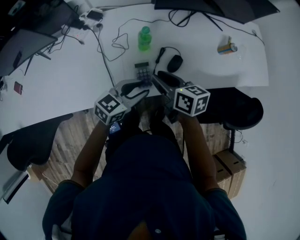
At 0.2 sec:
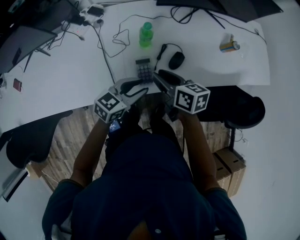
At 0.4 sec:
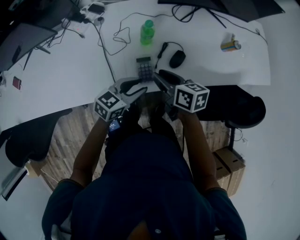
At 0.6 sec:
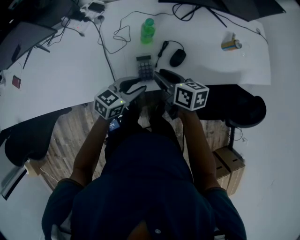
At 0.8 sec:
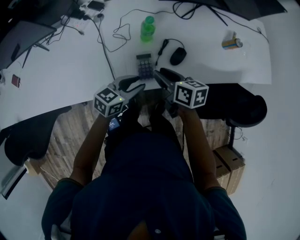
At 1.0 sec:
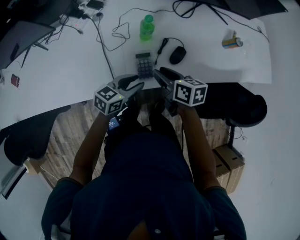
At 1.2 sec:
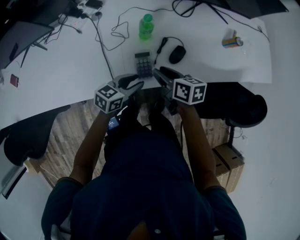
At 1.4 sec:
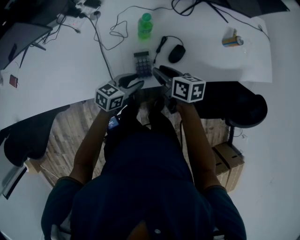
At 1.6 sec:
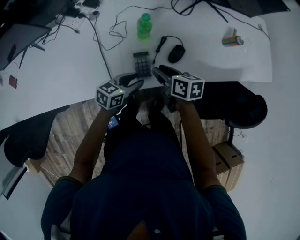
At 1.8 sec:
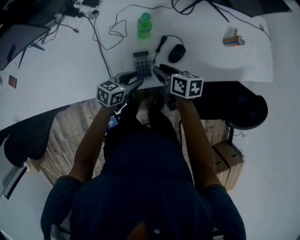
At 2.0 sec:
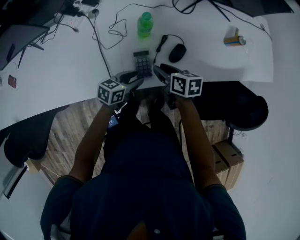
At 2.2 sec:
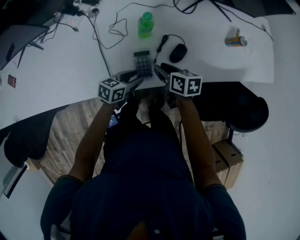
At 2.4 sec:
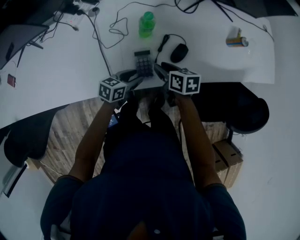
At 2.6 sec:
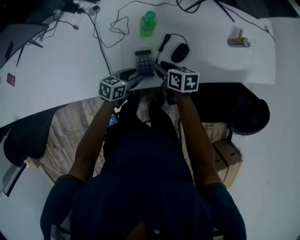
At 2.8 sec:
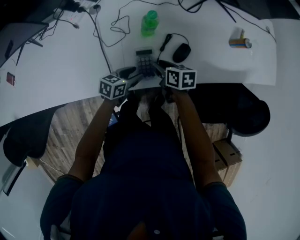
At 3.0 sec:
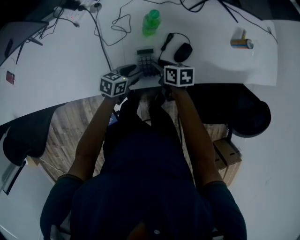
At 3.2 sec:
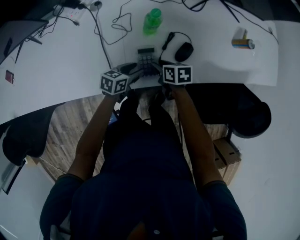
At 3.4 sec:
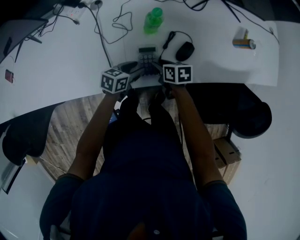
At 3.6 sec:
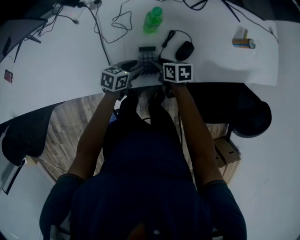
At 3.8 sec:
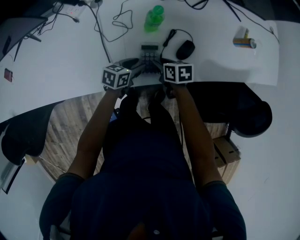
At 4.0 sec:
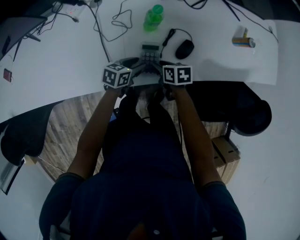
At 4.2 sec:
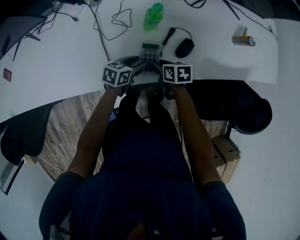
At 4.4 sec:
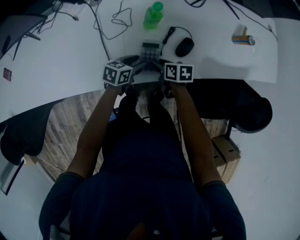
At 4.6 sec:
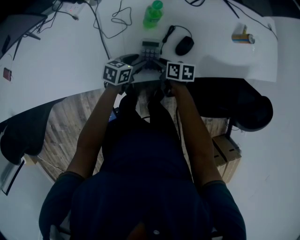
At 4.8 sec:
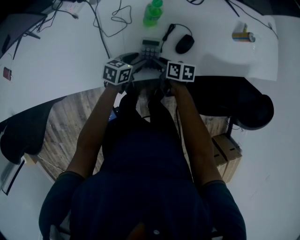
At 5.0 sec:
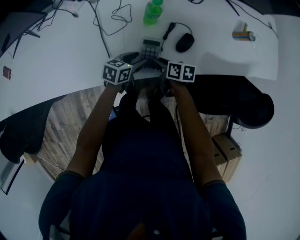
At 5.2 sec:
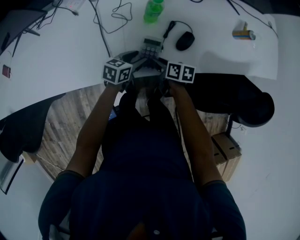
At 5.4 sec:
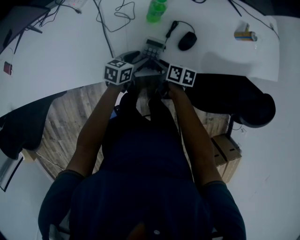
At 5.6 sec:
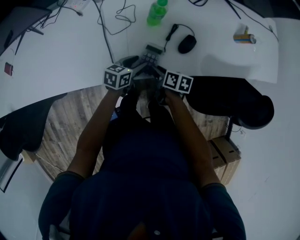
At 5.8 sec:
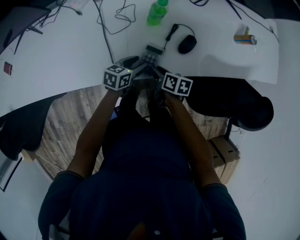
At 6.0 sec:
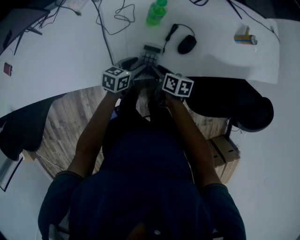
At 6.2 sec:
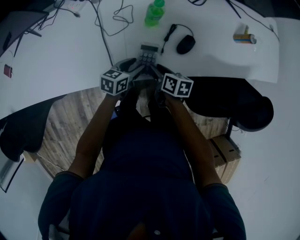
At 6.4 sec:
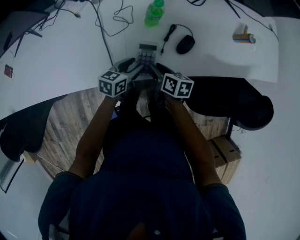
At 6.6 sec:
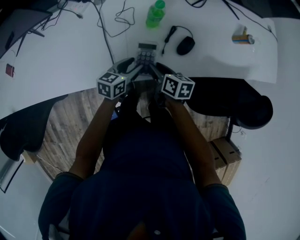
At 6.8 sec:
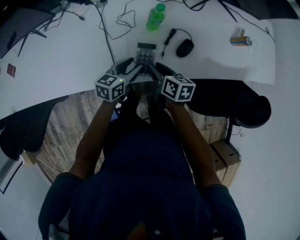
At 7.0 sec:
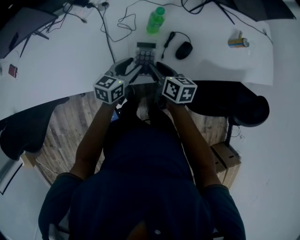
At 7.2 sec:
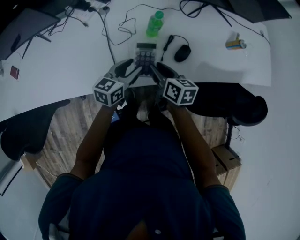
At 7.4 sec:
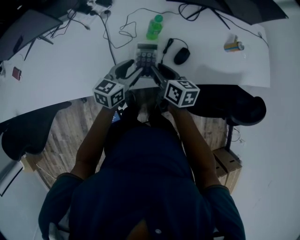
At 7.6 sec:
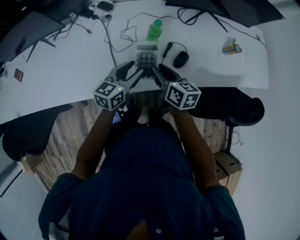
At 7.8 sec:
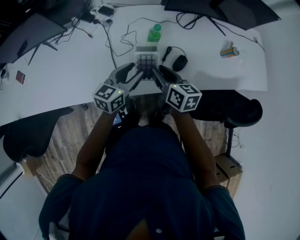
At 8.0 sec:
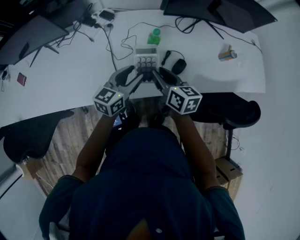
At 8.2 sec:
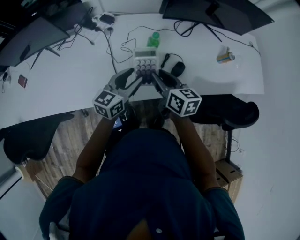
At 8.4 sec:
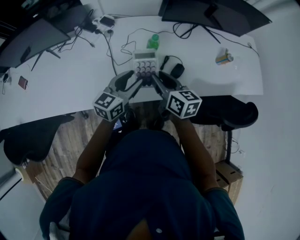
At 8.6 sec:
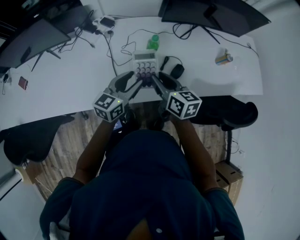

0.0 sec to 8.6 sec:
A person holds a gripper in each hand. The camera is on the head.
0.0 sec to 1.4 sec: Both grippers travel together downward, some 10 cm.
1.4 sec to 2.8 sec: Both grippers move downward, some 10 cm.
2.8 sec to 4.4 sec: The right gripper shifts approximately 5 cm downward.
4.4 sec to 5.8 sec: The right gripper goes roughly 5 cm backward.
5.8 sec to 7.2 sec: Both grippers move upward, roughly 15 cm. The right gripper changes its angle by some 20 degrees.
7.2 sec to 8.6 sec: The two grippers go about 10 cm upward.

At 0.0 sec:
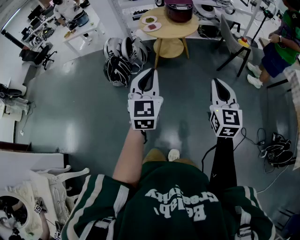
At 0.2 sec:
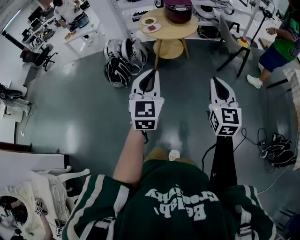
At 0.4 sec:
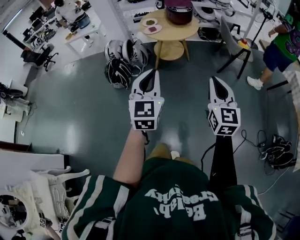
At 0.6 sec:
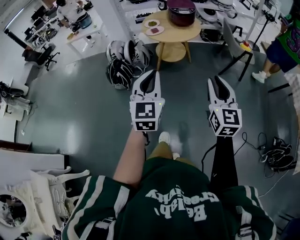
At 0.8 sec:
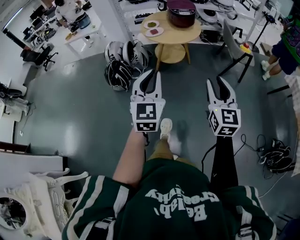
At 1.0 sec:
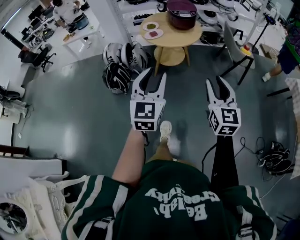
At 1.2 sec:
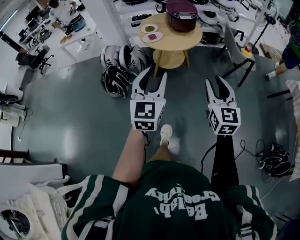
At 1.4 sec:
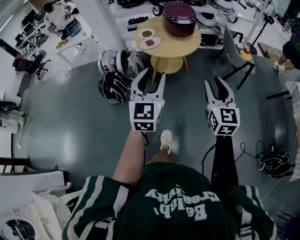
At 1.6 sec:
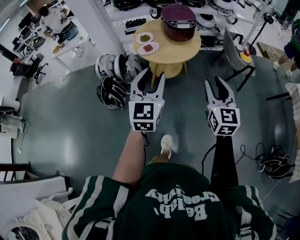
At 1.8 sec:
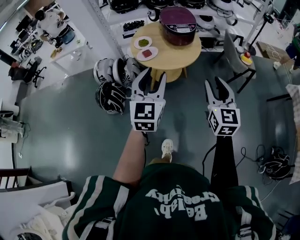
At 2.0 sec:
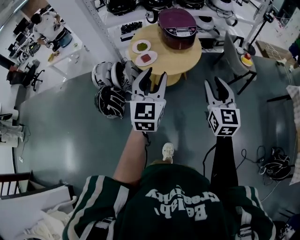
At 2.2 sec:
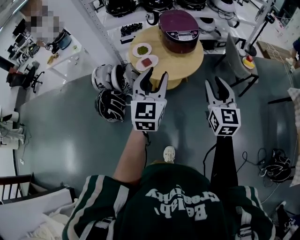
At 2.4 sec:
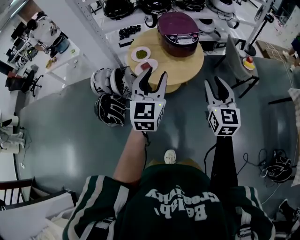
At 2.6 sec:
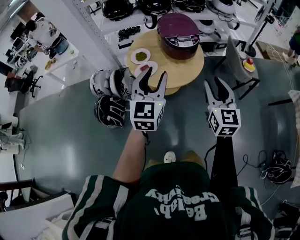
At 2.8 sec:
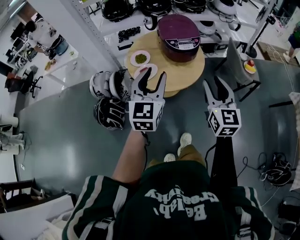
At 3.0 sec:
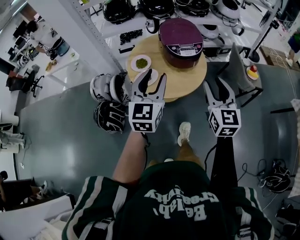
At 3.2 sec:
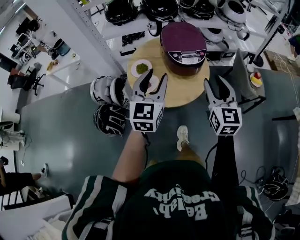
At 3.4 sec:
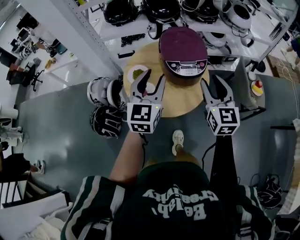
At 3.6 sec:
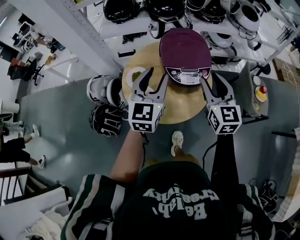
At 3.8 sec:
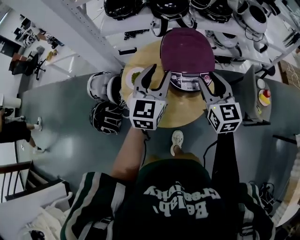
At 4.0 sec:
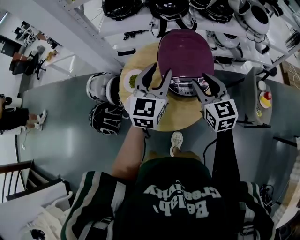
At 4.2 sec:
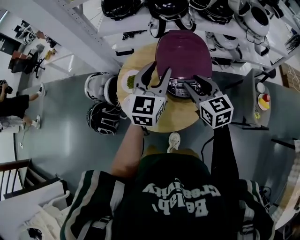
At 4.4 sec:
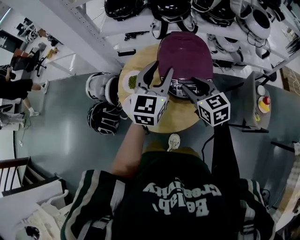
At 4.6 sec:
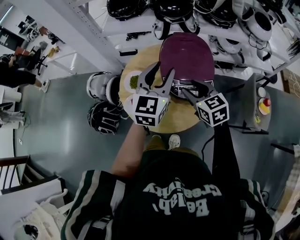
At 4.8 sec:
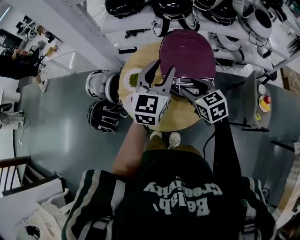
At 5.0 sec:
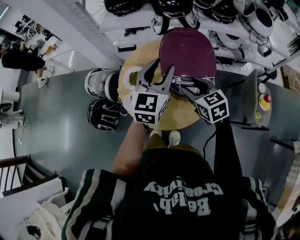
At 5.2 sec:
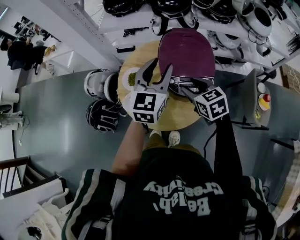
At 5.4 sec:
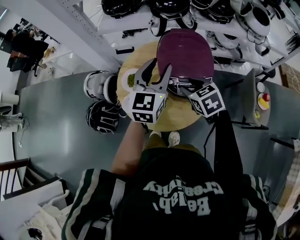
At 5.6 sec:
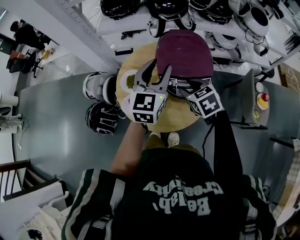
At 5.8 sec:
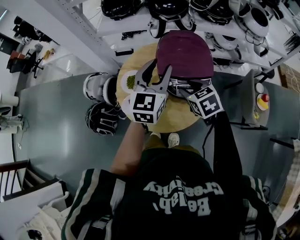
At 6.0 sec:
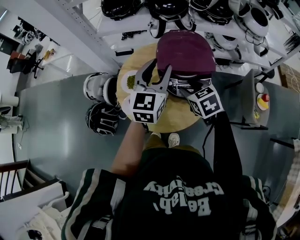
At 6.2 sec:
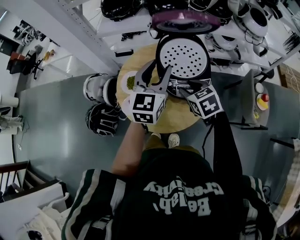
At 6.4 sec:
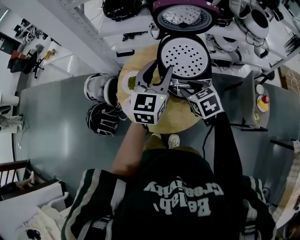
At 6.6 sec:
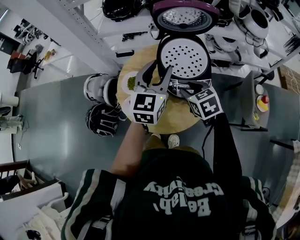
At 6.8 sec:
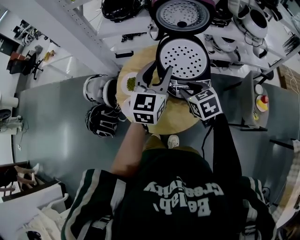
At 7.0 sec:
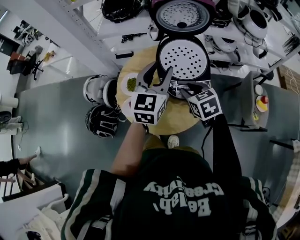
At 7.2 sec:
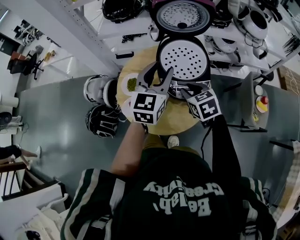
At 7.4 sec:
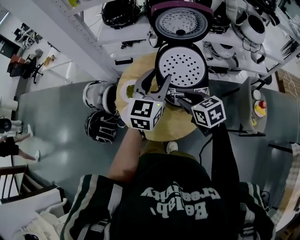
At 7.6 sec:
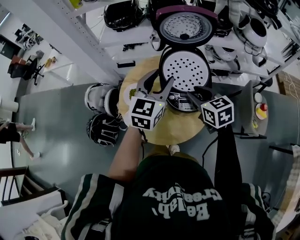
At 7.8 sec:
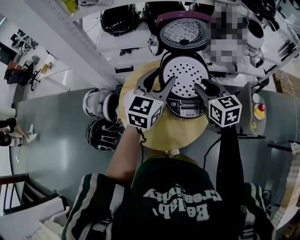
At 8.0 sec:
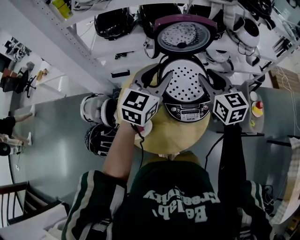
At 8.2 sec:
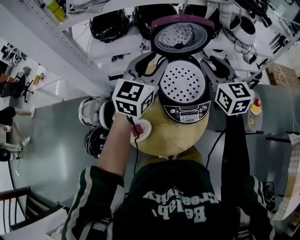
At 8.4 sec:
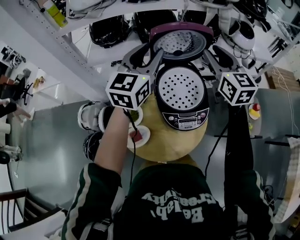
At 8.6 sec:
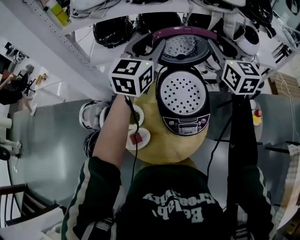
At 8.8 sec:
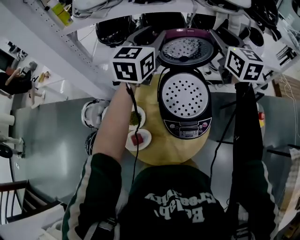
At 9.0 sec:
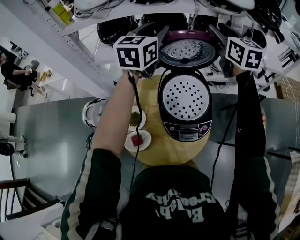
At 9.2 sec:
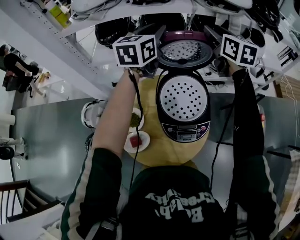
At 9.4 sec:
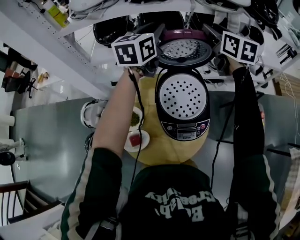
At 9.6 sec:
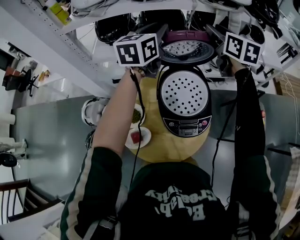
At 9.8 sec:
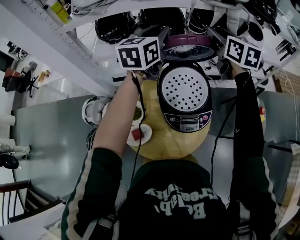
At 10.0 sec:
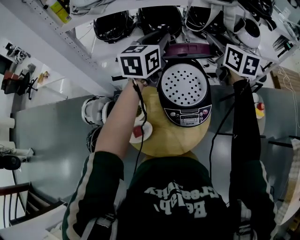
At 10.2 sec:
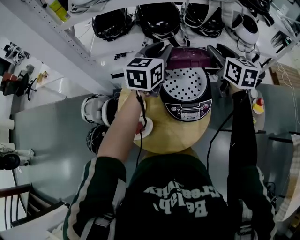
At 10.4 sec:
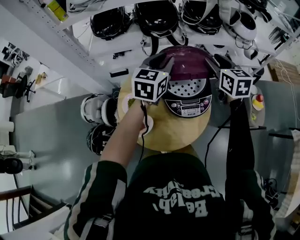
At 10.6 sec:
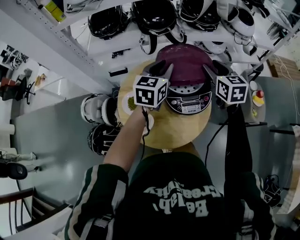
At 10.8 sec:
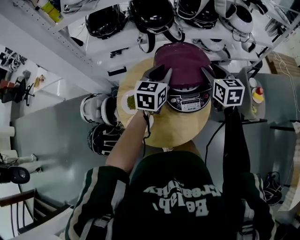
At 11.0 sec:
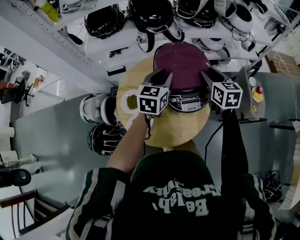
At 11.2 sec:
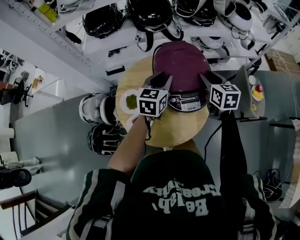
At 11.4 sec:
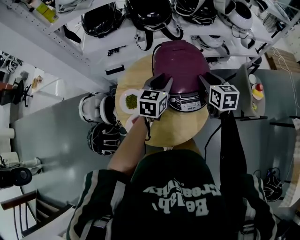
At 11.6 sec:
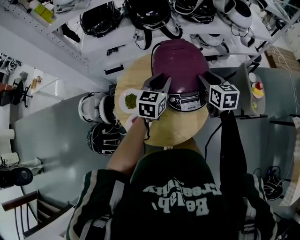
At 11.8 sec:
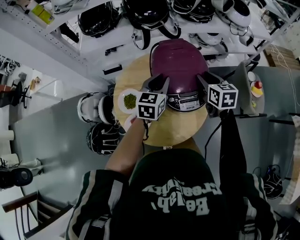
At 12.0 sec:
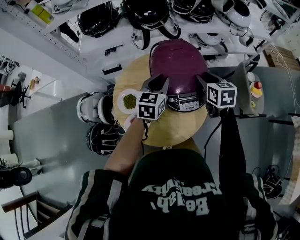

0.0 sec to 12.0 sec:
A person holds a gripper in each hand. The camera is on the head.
0.0 sec to 1.6 sec: The two grippers go about 30 cm forward. The right gripper opens up; the left gripper opens up.
1.6 sec to 3.0 sec: The two grippers go some 30 cm forward.
3.0 sec to 4.4 sec: The two grippers go approximately 30 cm forward. The right gripper changes its angle by roughly 40 degrees.
6.0 sec to 7.6 sec: The right gripper moves roughly 5 cm.
7.6 sec to 9.0 sec: Both grippers travel together forward and upward, roughly 35 cm. The right gripper swivels about 30 degrees.
9.0 sec to 10.4 sec: Both grippers travel together backward and downward, approximately 20 cm.
10.4 sec to 12.0 sec: The grippers both shift downward and backward by roughly 15 cm.

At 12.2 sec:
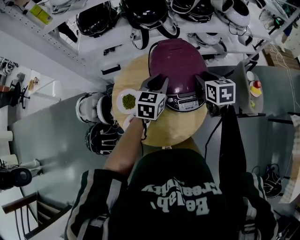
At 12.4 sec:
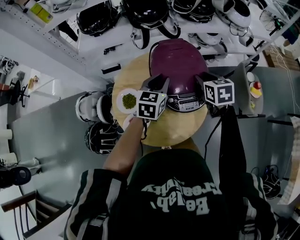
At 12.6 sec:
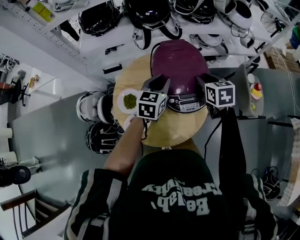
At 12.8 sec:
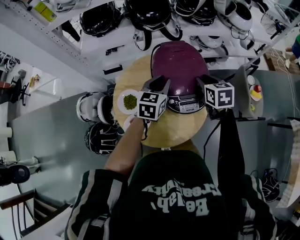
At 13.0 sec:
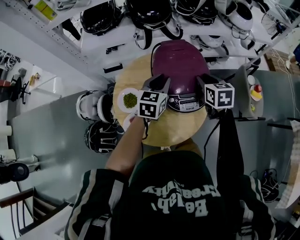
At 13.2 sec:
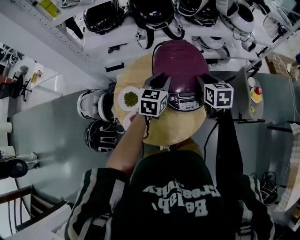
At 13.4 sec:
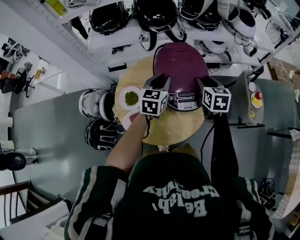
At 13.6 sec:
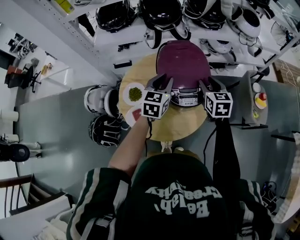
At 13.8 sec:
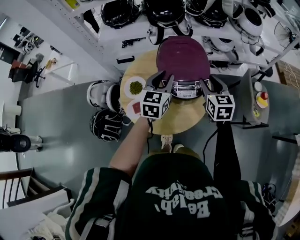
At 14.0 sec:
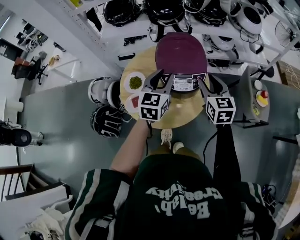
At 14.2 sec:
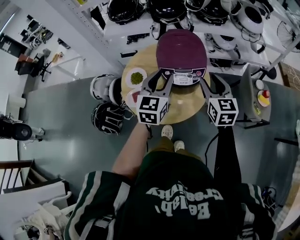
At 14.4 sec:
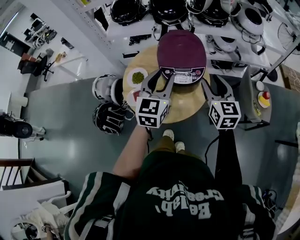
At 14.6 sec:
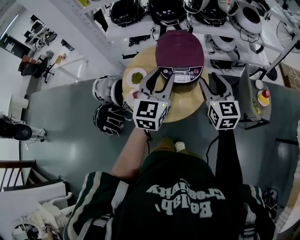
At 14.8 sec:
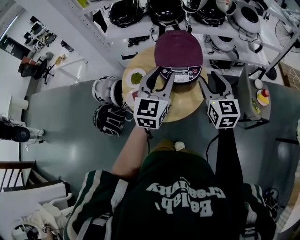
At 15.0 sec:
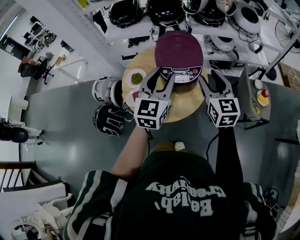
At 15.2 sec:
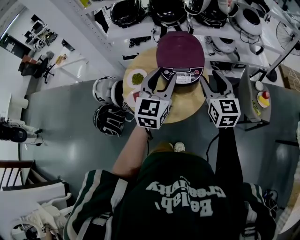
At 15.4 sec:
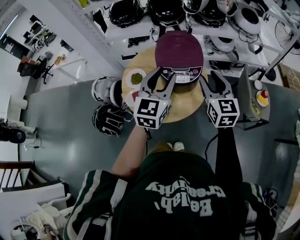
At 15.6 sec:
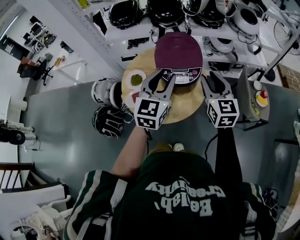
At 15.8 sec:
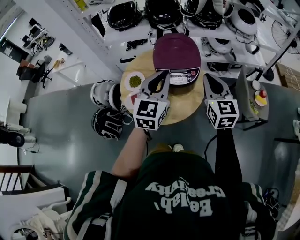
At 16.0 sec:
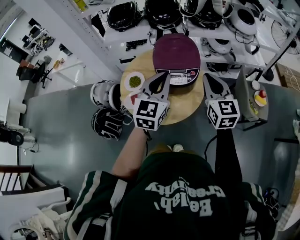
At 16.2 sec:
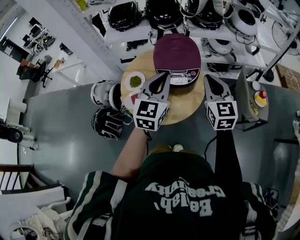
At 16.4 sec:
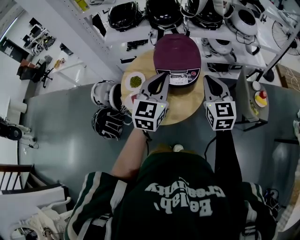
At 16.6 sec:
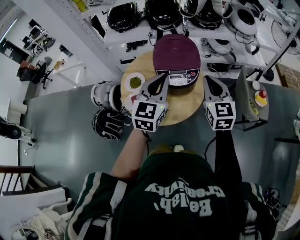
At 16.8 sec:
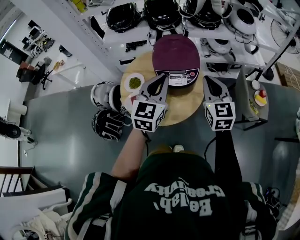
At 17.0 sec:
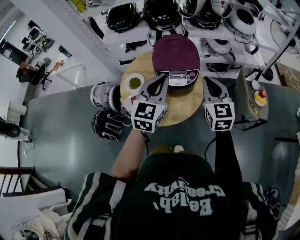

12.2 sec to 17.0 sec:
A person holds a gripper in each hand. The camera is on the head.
12.2 sec to 13.8 sec: The grippers both shift backward by approximately 5 cm.
13.8 sec to 15.4 sec: Both grippers travel together backward and upward, about 15 cm.
15.4 sec to 17.0 sec: The right gripper closes up. Meanwhile the left gripper closes.
